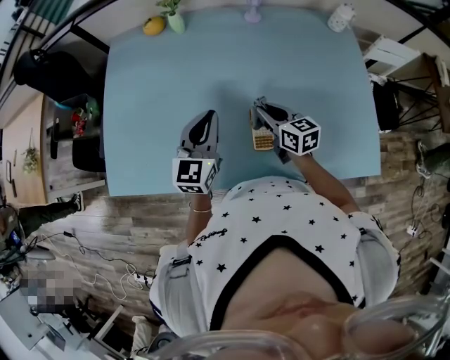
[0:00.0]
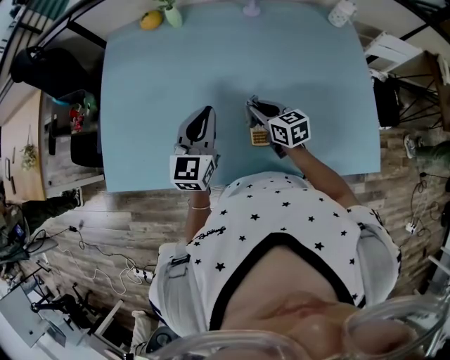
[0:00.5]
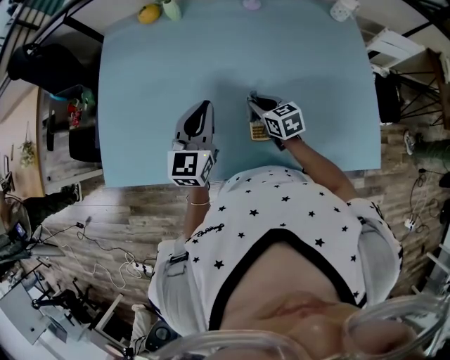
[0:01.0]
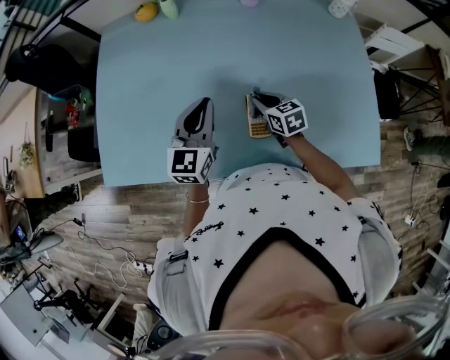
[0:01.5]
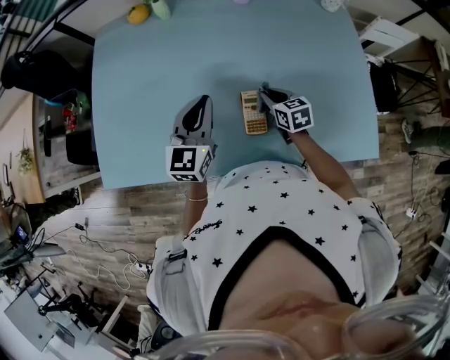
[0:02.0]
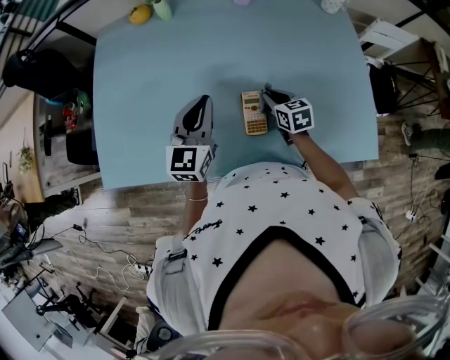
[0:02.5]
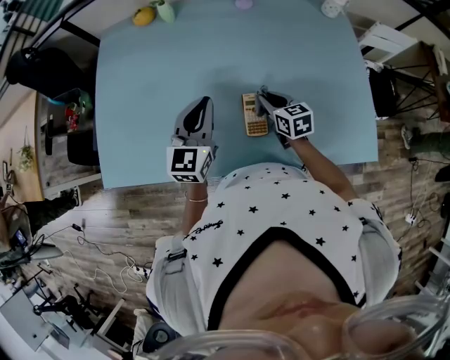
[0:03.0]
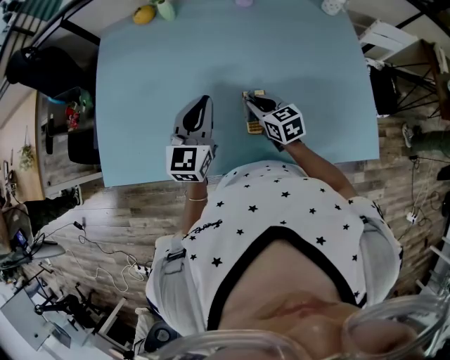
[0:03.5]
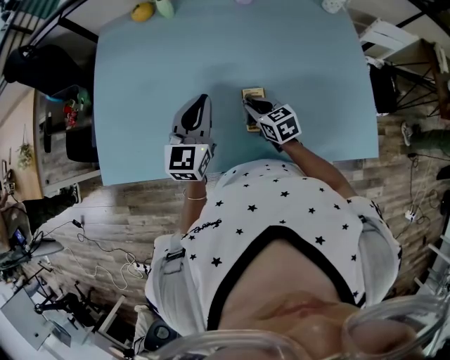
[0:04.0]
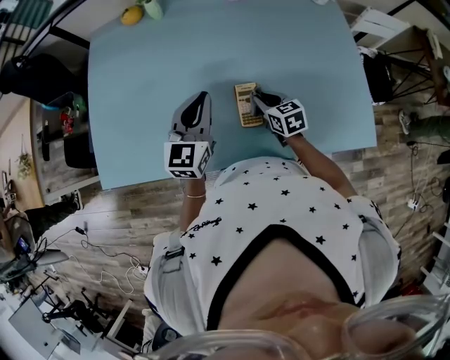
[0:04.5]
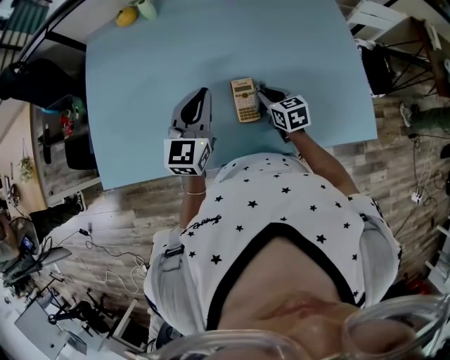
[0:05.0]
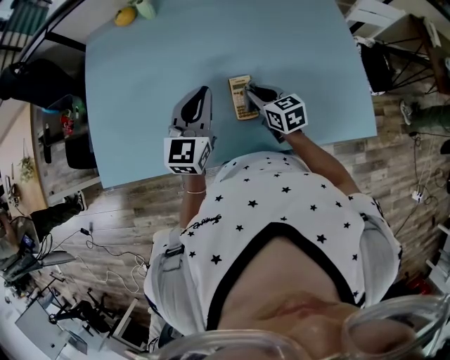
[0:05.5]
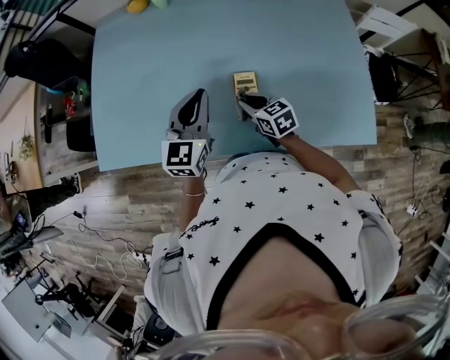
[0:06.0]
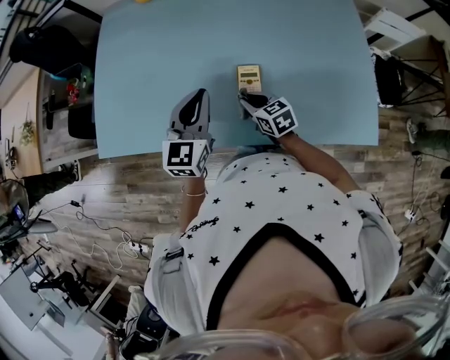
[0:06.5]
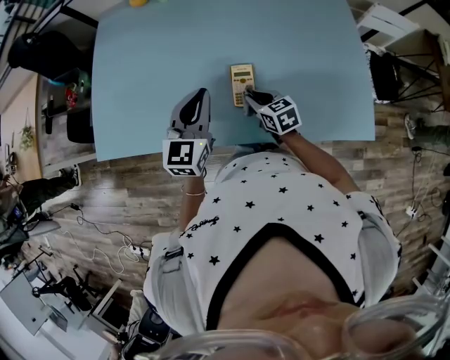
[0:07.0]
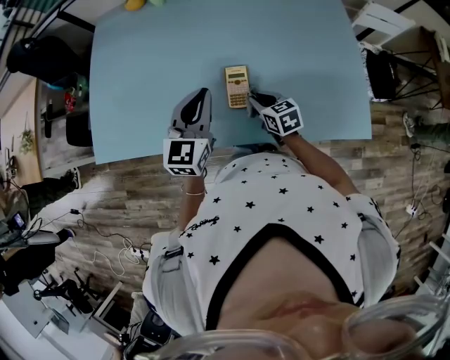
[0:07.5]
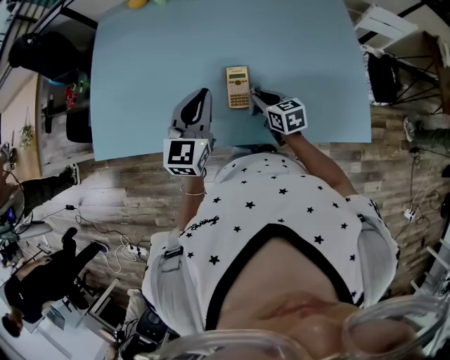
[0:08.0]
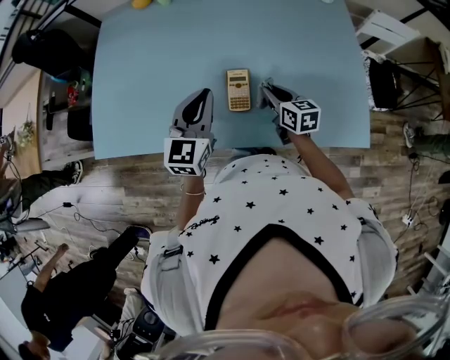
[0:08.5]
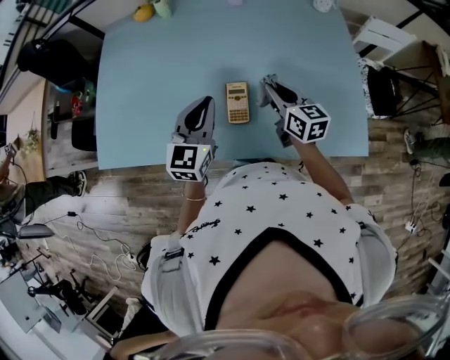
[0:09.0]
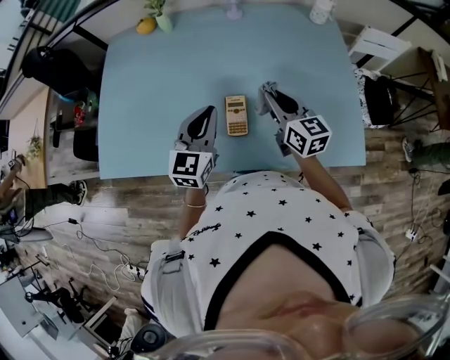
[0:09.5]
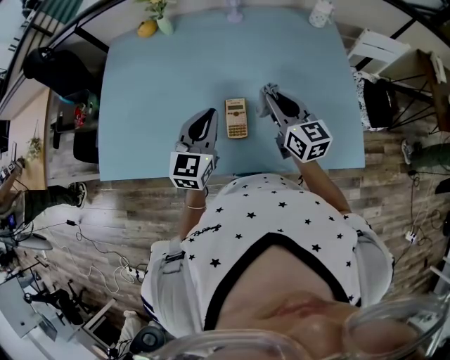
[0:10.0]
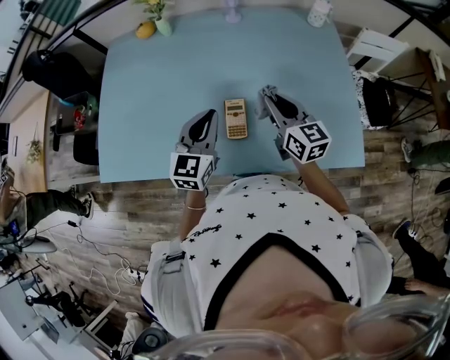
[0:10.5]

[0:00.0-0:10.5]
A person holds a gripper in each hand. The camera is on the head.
0:00.0 to 0:02.0: The right gripper travels downward by roughly 10 cm.
0:02.0 to 0:04.0: The right gripper travels to the left by approximately 5 cm.
0:04.0 to 0:06.5: Both grippers move backward, some 5 cm. The right gripper goes to the right and returns, roughly 10 cm each way.
0:06.5 to 0:08.5: The right gripper goes about 10 cm to the right, and swivels roughly 20 degrees.
0:08.5 to 0:10.5: The right gripper shifts about 15 cm upward, and turns by about 20 degrees.

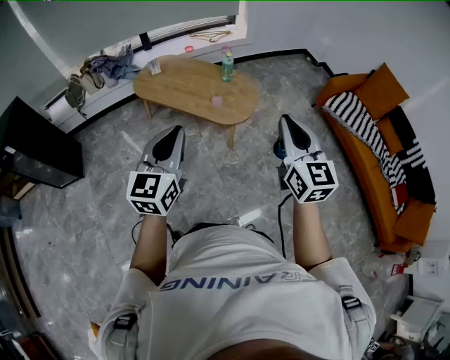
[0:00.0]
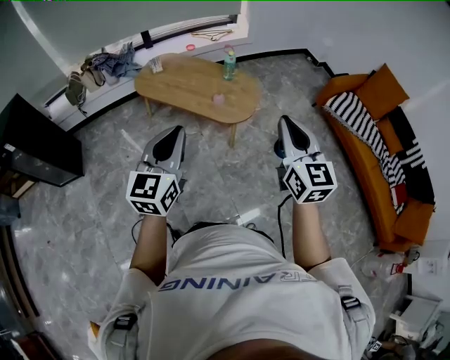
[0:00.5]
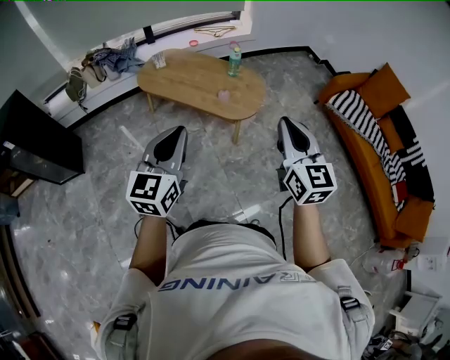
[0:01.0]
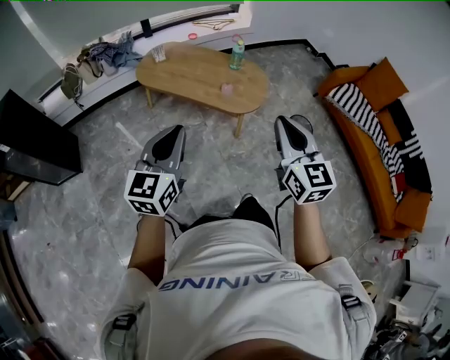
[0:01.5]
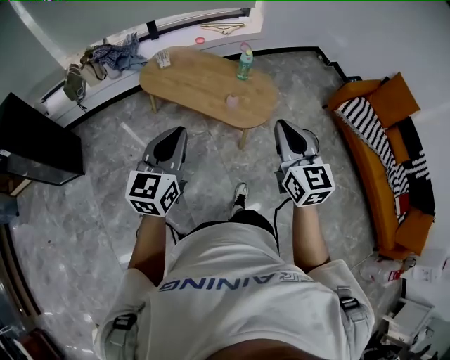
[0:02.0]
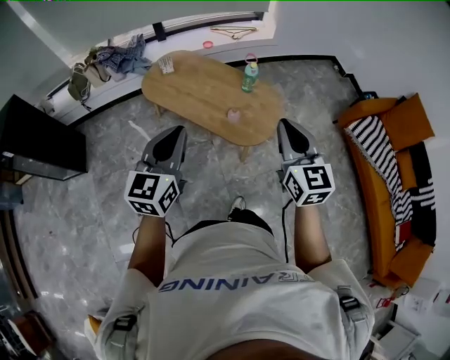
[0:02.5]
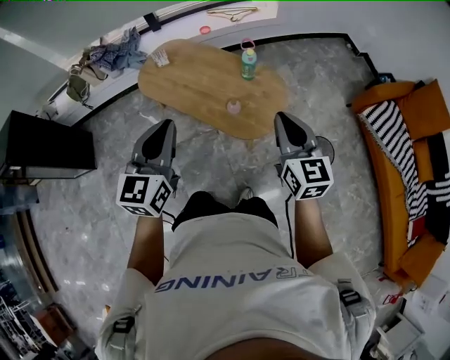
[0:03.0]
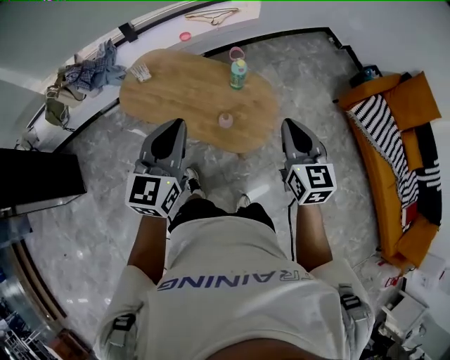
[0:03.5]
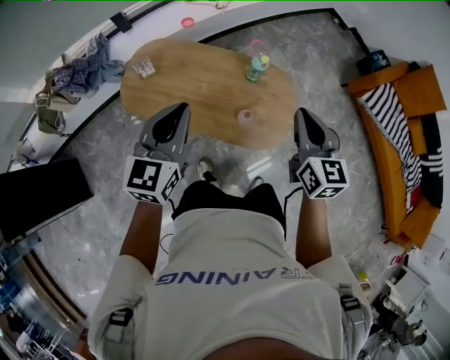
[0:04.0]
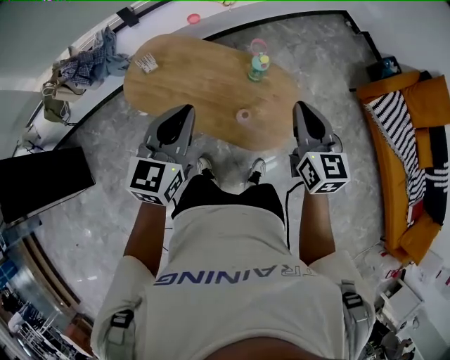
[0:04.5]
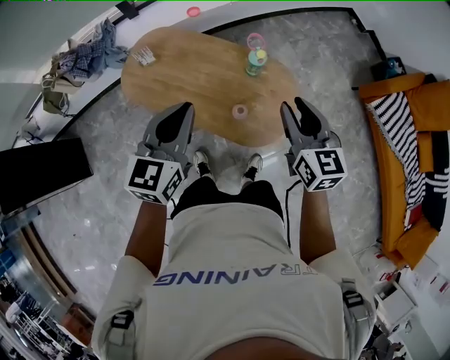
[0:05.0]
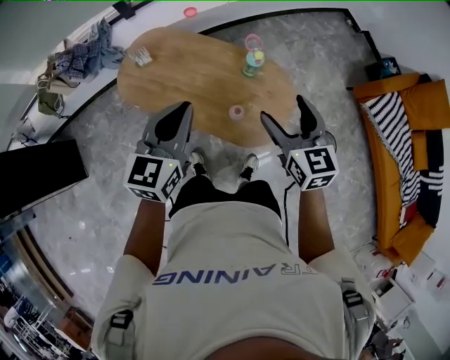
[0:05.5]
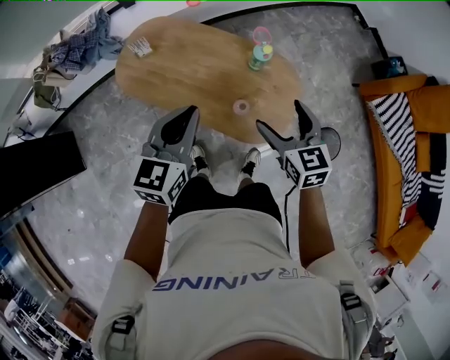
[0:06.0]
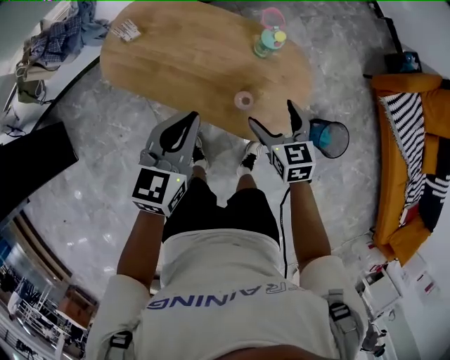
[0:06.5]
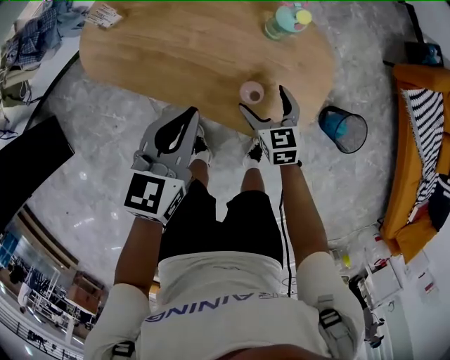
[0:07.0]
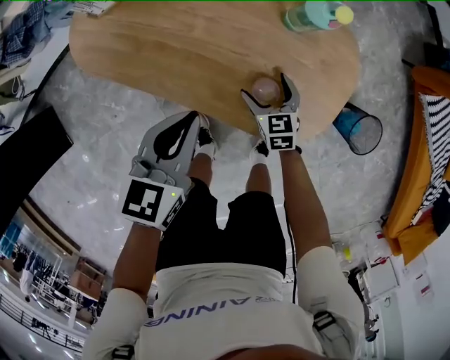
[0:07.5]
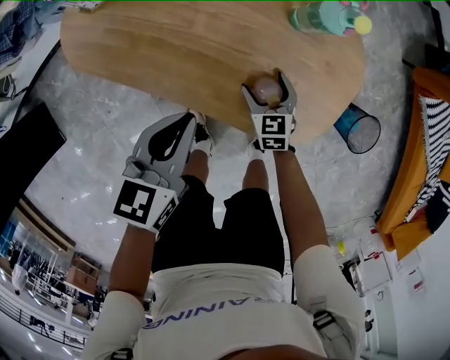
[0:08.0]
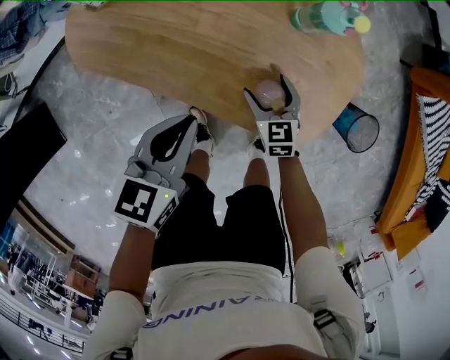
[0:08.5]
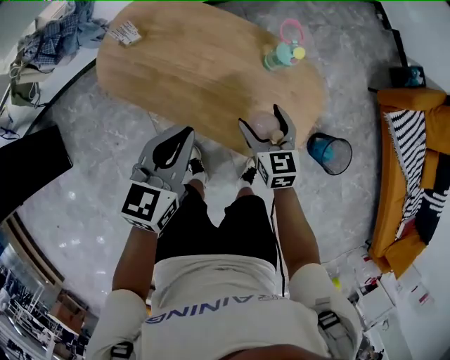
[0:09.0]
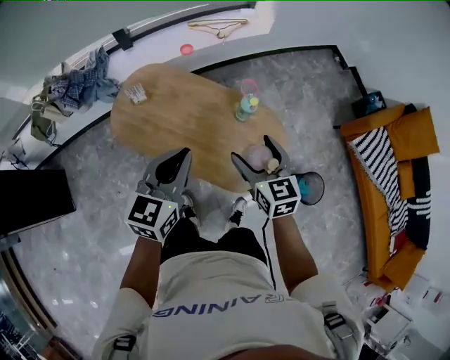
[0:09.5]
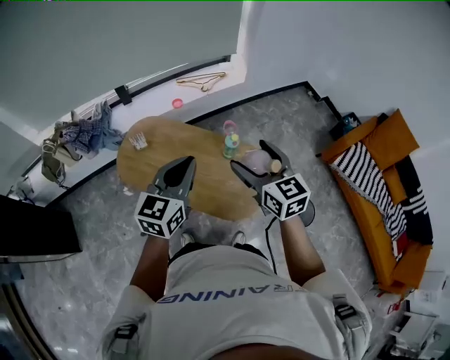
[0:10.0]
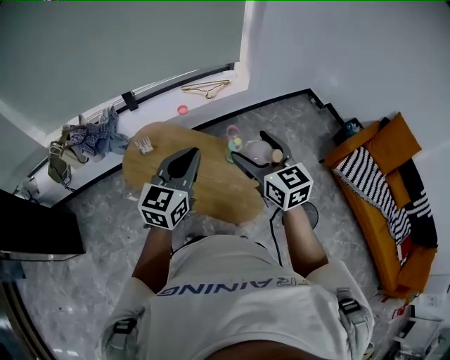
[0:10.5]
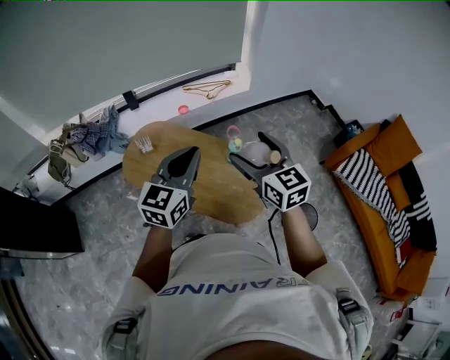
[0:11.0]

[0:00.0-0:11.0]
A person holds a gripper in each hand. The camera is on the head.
0:00.0 to 0:02.0: The right gripper is displaced to the left, forward and downward by approximately 15 cm; the left gripper travels to the left and forward by approximately 15 cm.
0:02.0 to 0:03.5: Both grippers move forward, approximately 30 cm.
0:03.5 to 0:05.5: The left gripper is displaced forward and downward by roughly 15 cm; the right gripper heads forward and to the left, covering some 15 cm, and opens.
0:05.5 to 0:07.5: The right gripper moves downward, some 50 cm, and turns by approximately 20 degrees; the left gripper goes some 35 cm downward, and swivels about 20 degrees.
0:07.5 to 0:09.0: The left gripper travels upward by approximately 15 cm. Meanwhile the right gripper moves upward, some 20 cm.
0:09.0 to 0:11.0: The two grippers go approximately 35 cm upward. The left gripper changes its angle by roughly 30 degrees; the right gripper swivels some 20 degrees.

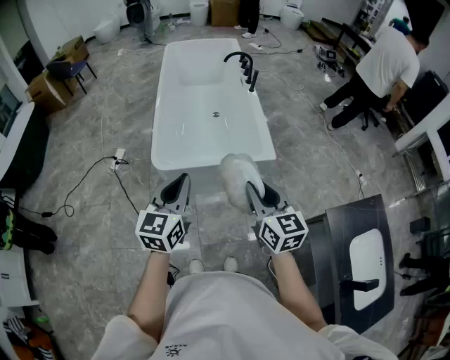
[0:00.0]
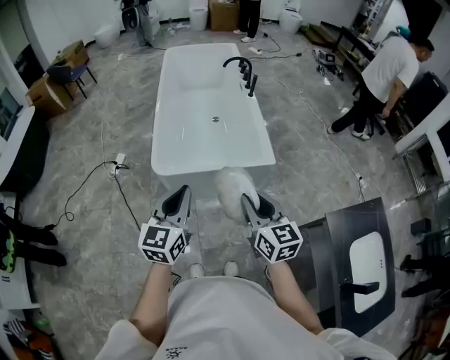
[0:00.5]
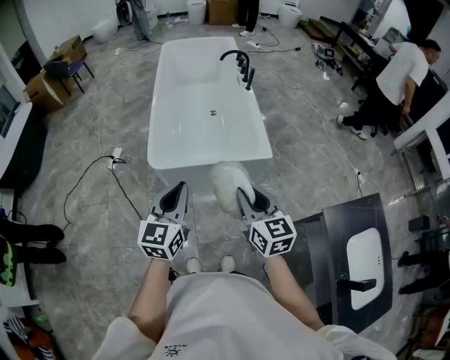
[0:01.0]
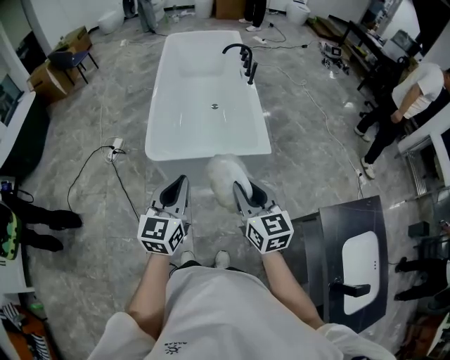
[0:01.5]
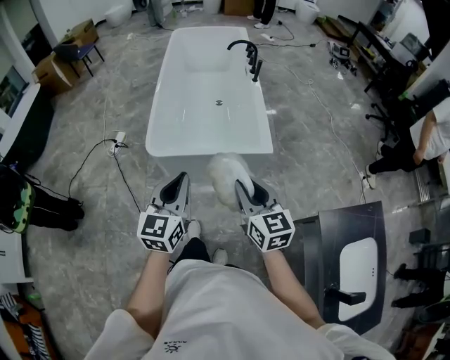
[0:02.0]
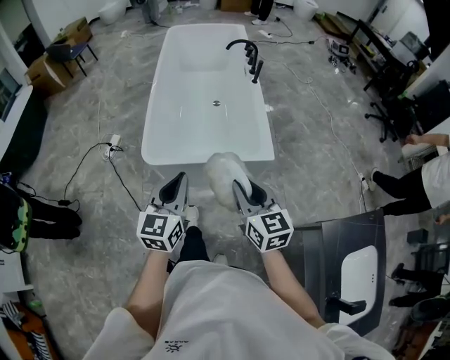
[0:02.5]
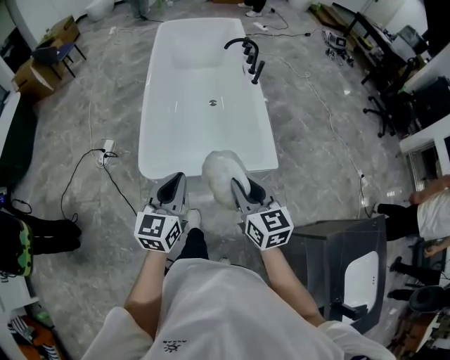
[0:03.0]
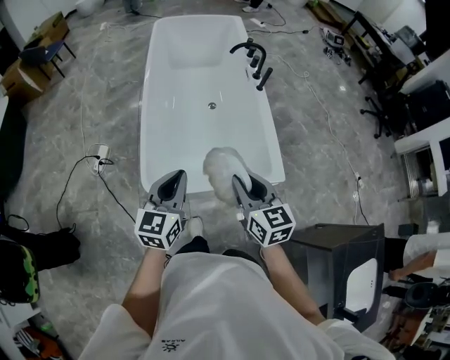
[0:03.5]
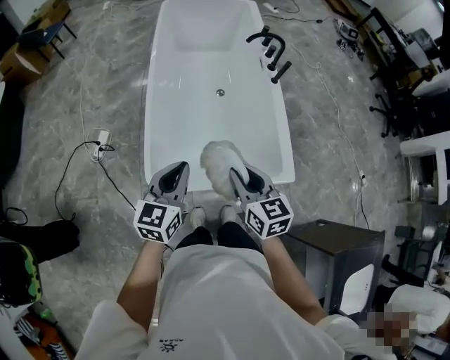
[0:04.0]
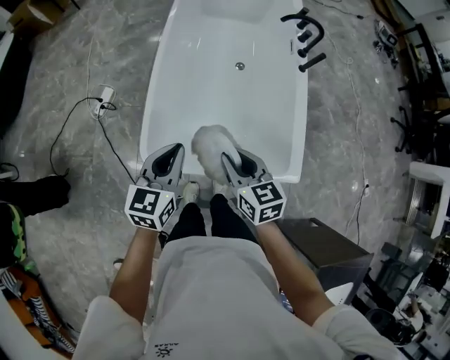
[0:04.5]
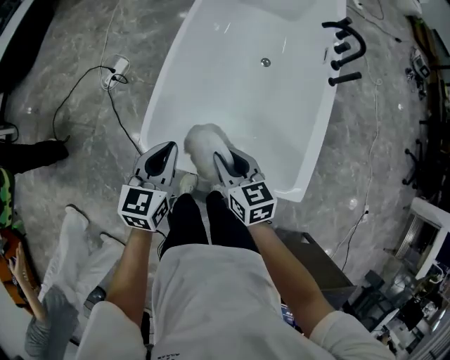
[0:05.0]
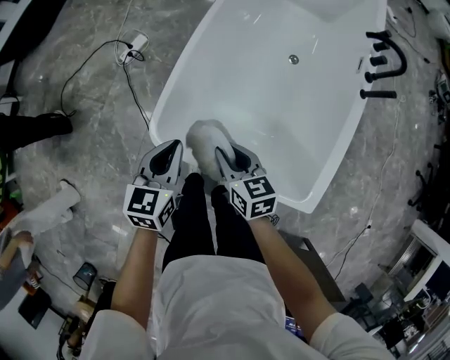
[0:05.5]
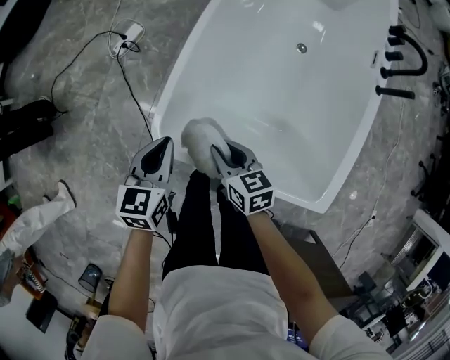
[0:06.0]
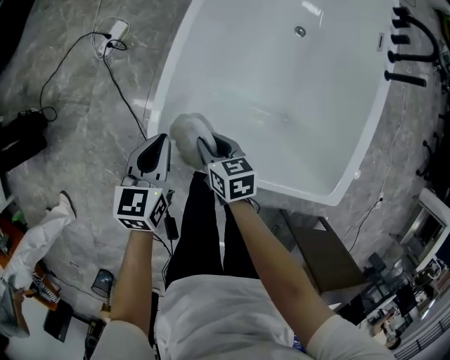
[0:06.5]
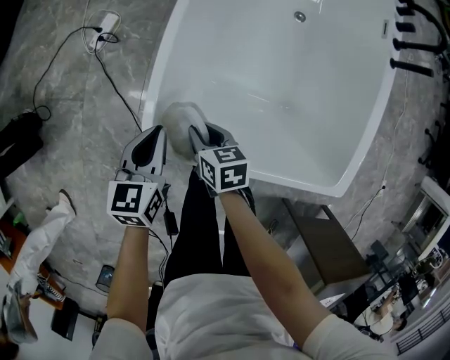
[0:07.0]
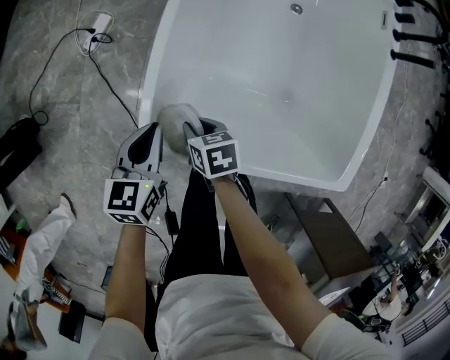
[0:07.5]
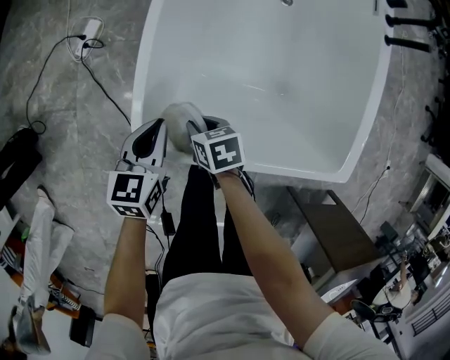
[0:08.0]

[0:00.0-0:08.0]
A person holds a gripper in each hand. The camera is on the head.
0:00.0 to 0:02.0: The left gripper travels to the right by some 5 cm.
0:02.0 to 0:04.0: The right gripper shifts approximately 35 cm forward and to the left. Meanwhile the left gripper is displaced forward by about 30 cm.
0:04.0 to 0:06.0: The two grippers go about 25 cm downward. The right gripper rotates about 40 degrees. Meanwhile the left gripper rotates approximately 40 degrees.
0:06.0 to 0:08.0: The grippers both shift downward by approximately 10 cm. The right gripper swivels approximately 20 degrees.
